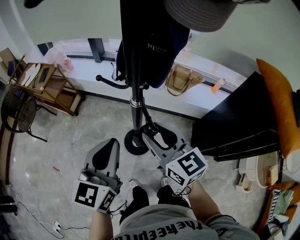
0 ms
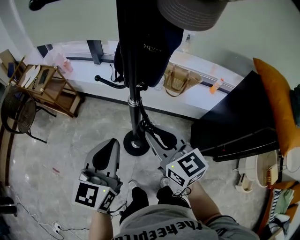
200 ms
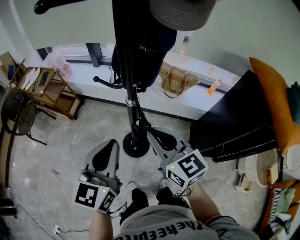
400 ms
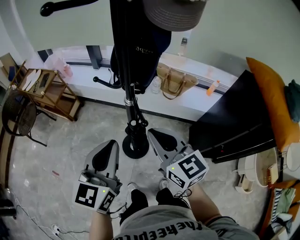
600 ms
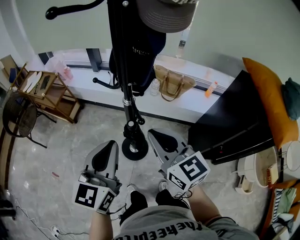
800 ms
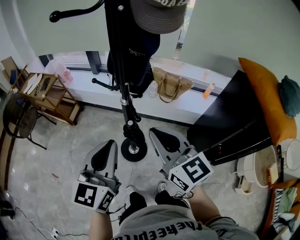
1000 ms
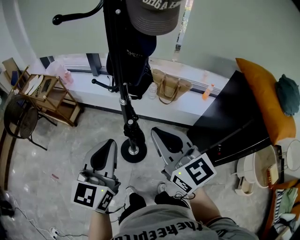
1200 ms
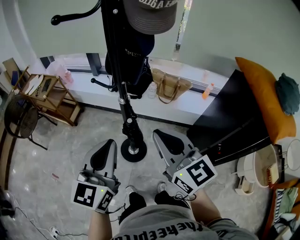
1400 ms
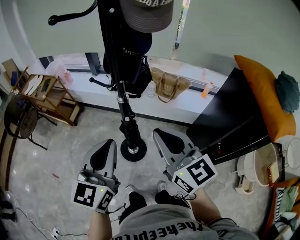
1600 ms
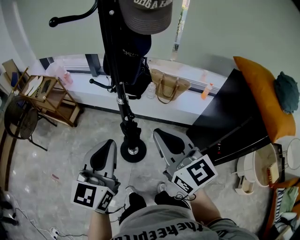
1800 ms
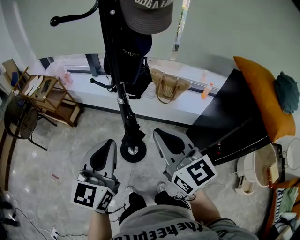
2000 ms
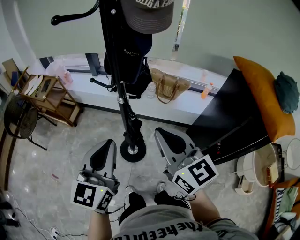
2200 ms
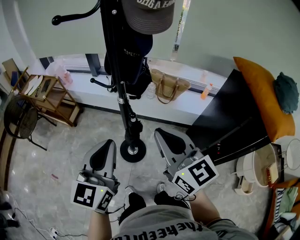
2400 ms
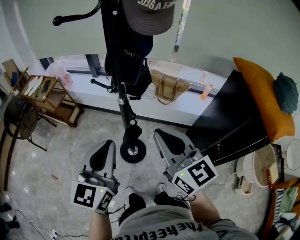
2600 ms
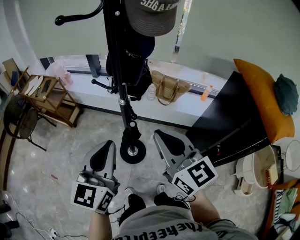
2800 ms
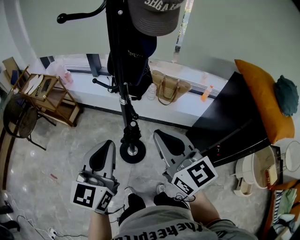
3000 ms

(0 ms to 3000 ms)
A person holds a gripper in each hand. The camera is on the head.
0 ms - 1600 ms: The right gripper moves backward, upward and to the right, approximately 15 cm, and closes its fingers; the left gripper heads backward, covering approximately 5 cm.
1600 ms - 3000 ms: Both grippers stay about where they are.

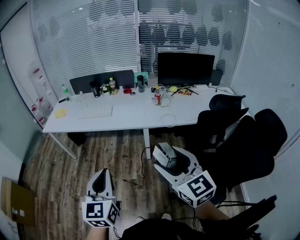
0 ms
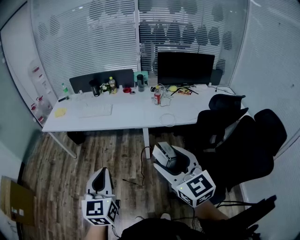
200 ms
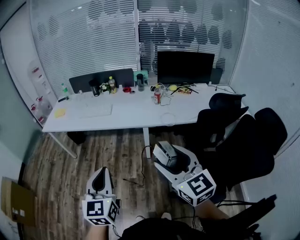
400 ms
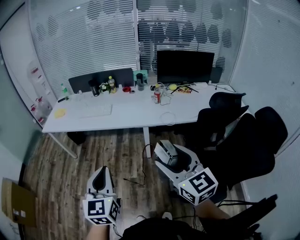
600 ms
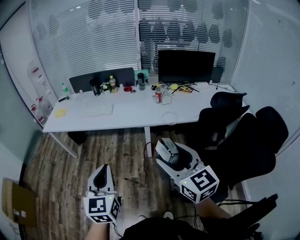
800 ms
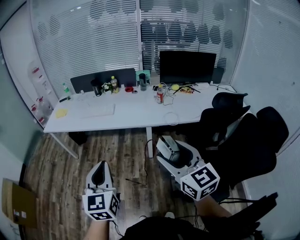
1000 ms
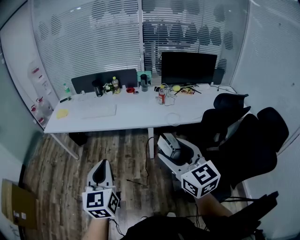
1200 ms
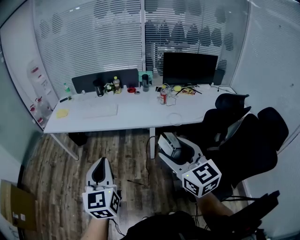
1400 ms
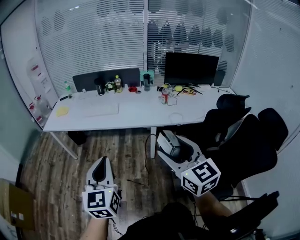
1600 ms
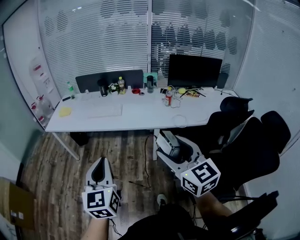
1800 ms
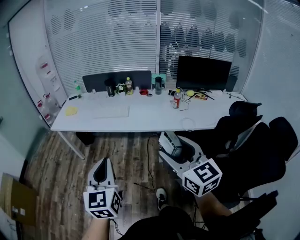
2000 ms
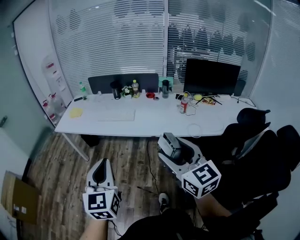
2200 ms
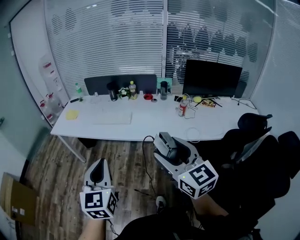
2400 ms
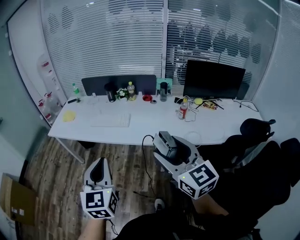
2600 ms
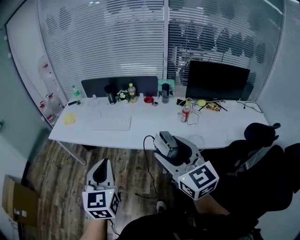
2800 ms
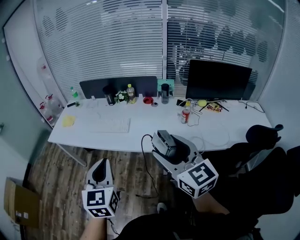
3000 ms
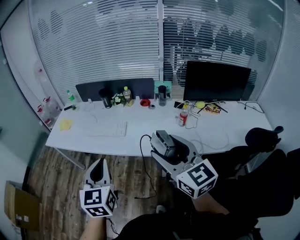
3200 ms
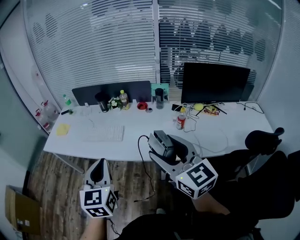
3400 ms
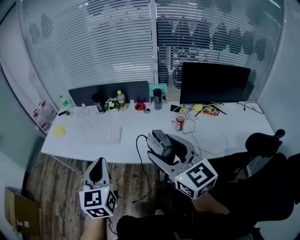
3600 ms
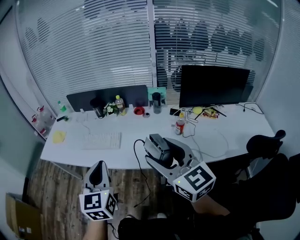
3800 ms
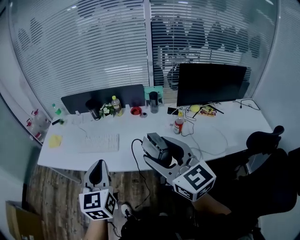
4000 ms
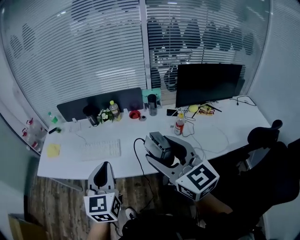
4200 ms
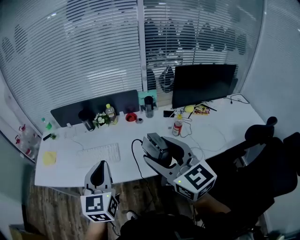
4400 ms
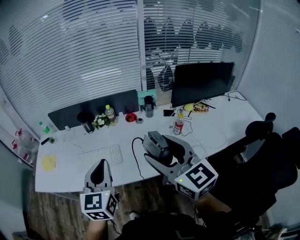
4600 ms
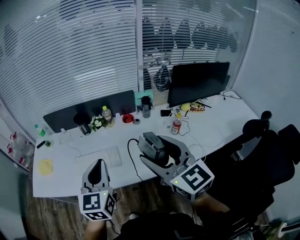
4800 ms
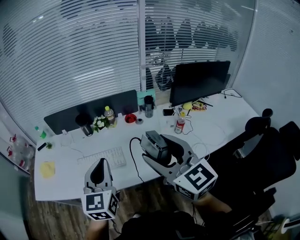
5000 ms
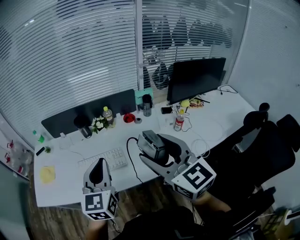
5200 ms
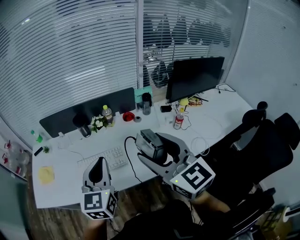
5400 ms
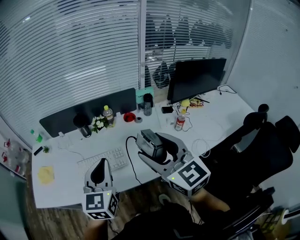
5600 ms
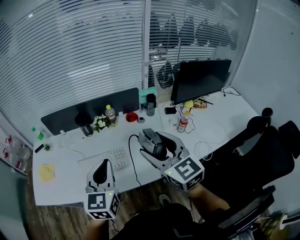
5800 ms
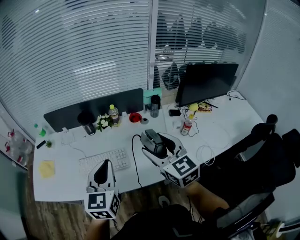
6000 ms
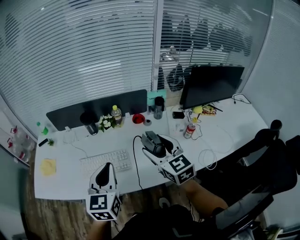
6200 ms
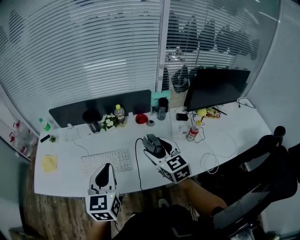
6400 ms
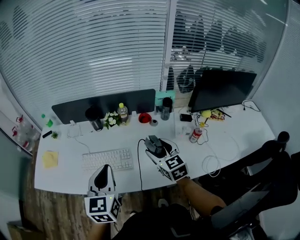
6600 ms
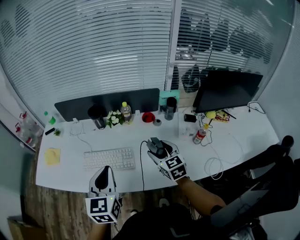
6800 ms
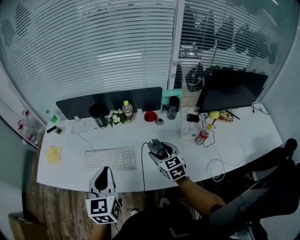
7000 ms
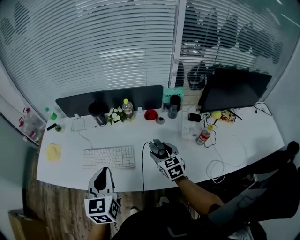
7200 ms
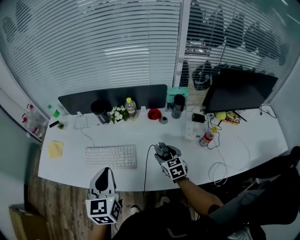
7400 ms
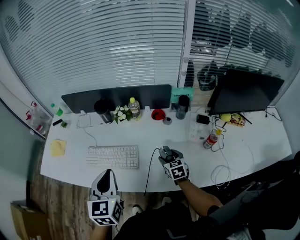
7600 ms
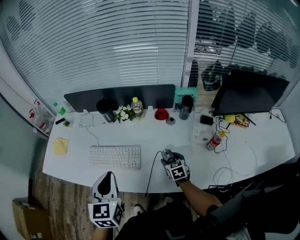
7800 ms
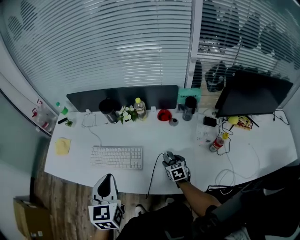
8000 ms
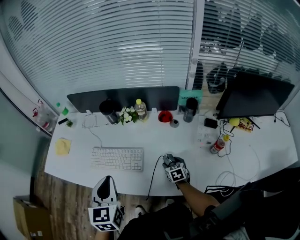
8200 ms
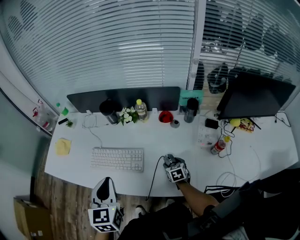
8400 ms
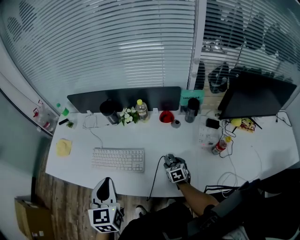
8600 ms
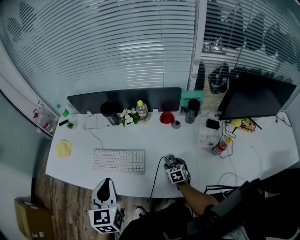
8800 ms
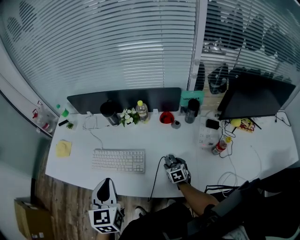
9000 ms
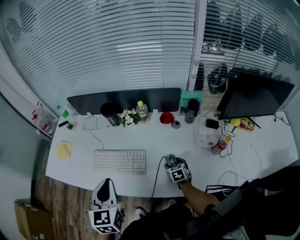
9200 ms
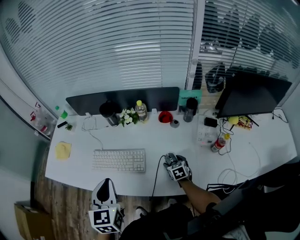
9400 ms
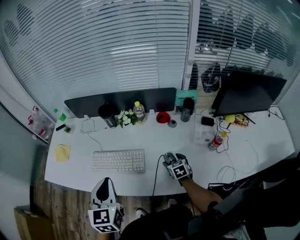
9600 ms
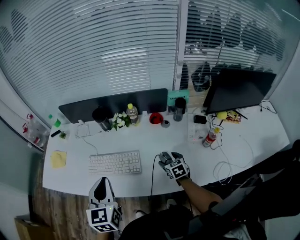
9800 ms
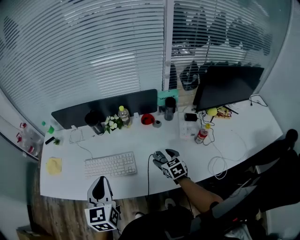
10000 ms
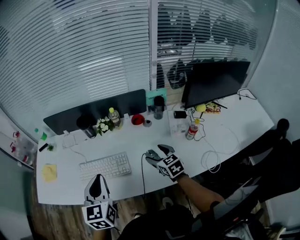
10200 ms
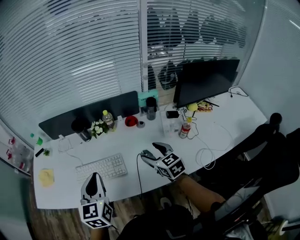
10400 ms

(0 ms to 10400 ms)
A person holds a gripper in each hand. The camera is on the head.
0 ms - 1400 ms: The left gripper moves to the left and forward, approximately 10 cm. Meanwhile the right gripper ends up approximately 5 cm from where it was.
1400 ms - 3000 ms: The two grippers go some 25 cm forward.
3000 ms - 4400 ms: Both grippers move forward, roughly 20 cm.
4400 ms - 6000 ms: The left gripper travels forward and to the left by some 15 cm. The right gripper is displaced forward, to the left and downward by roughly 20 cm.
6000 ms - 7400 ms: The left gripper moves downward, some 5 cm. The right gripper shifts approximately 25 cm downward, and turns by about 20 degrees.
7400 ms - 9000 ms: The right gripper heads downward, covering approximately 15 cm.
9000 ms - 10400 ms: The right gripper shifts roughly 25 cm upward, and turns by some 20 degrees.

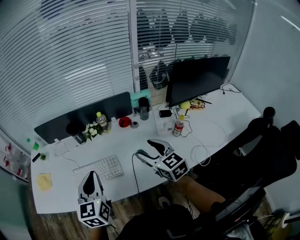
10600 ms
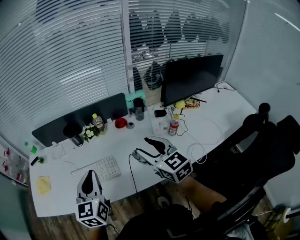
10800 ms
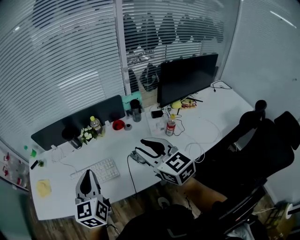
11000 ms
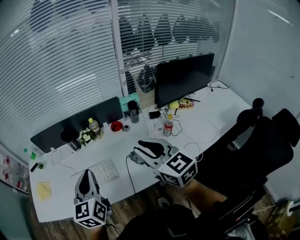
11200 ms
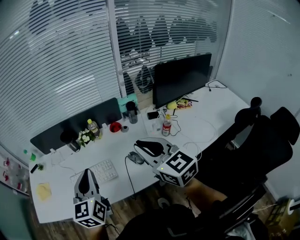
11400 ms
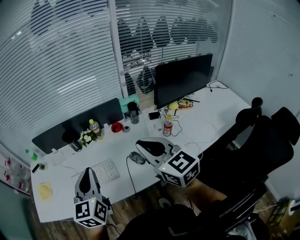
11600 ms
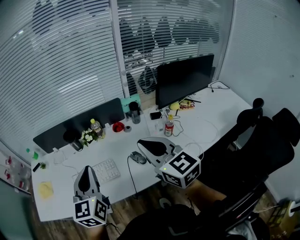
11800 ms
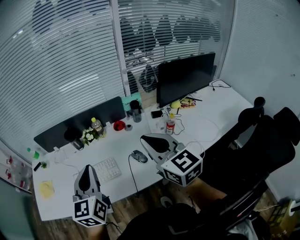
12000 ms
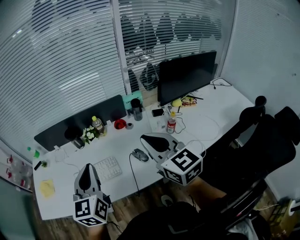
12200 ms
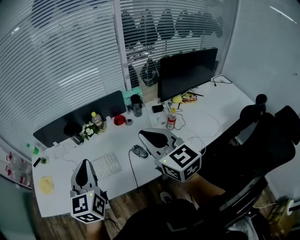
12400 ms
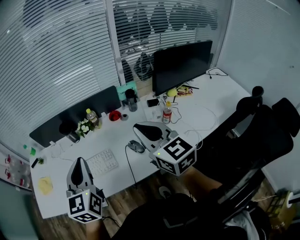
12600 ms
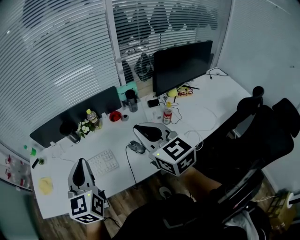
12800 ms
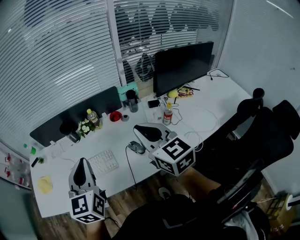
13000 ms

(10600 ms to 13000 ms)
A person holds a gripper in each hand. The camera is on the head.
10600 ms - 11800 ms: The left gripper travels upward by roughly 5 cm. Meanwhile the right gripper moves upward and backward, some 15 cm, and closes up.
11800 ms - 13000 ms: The grippers make only small movements.

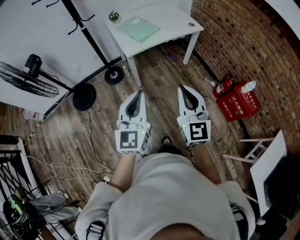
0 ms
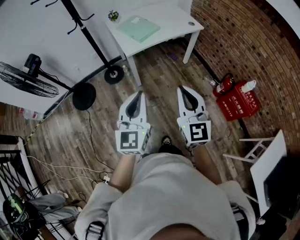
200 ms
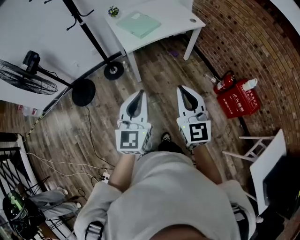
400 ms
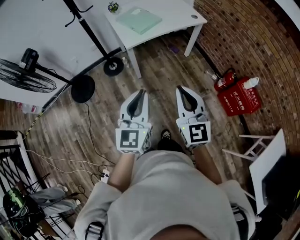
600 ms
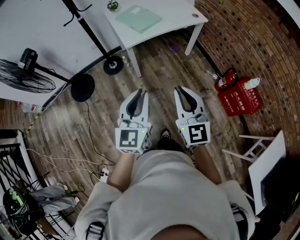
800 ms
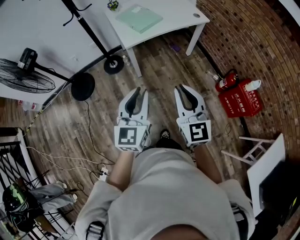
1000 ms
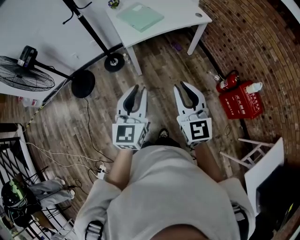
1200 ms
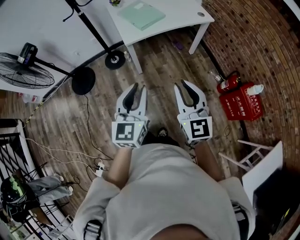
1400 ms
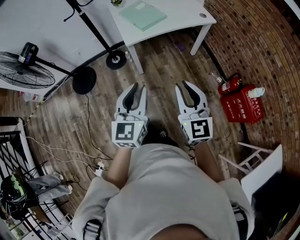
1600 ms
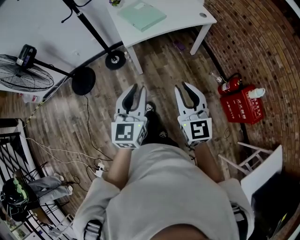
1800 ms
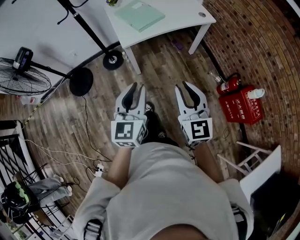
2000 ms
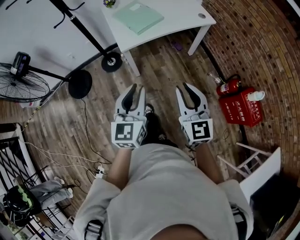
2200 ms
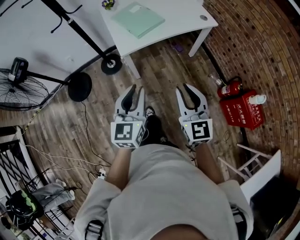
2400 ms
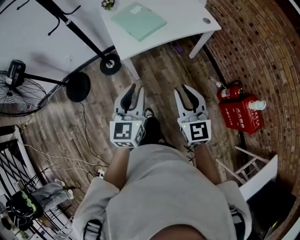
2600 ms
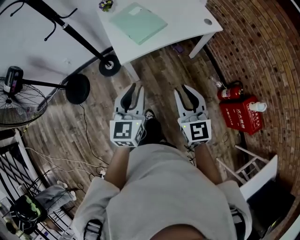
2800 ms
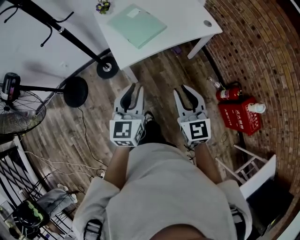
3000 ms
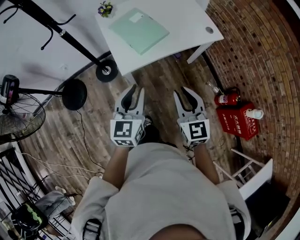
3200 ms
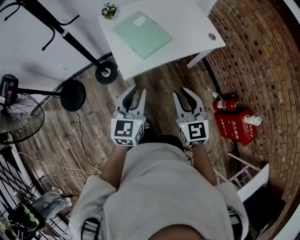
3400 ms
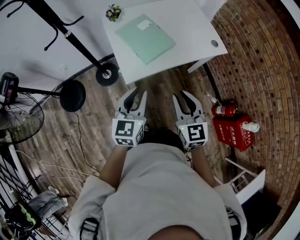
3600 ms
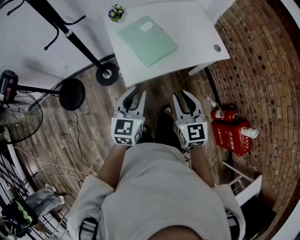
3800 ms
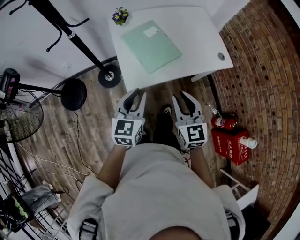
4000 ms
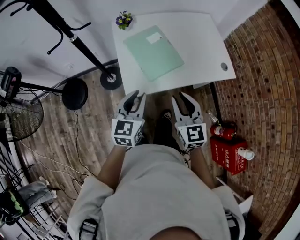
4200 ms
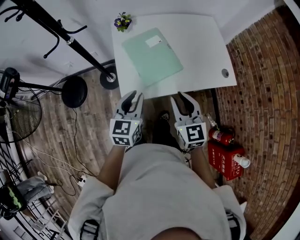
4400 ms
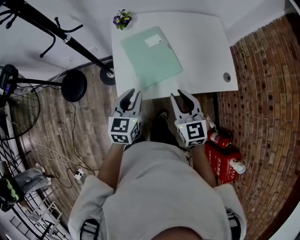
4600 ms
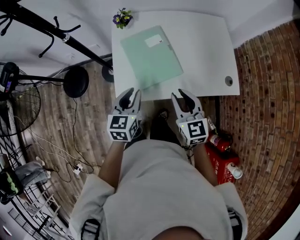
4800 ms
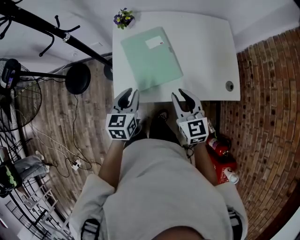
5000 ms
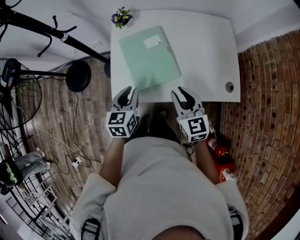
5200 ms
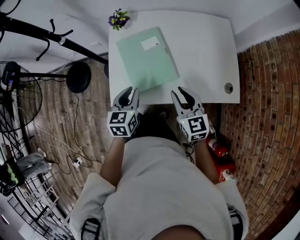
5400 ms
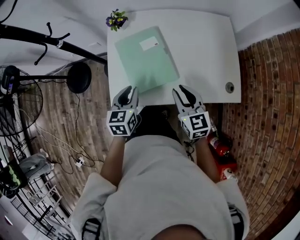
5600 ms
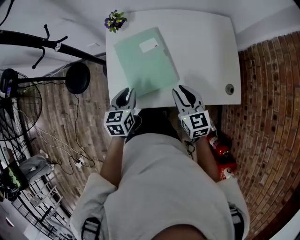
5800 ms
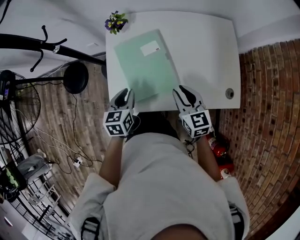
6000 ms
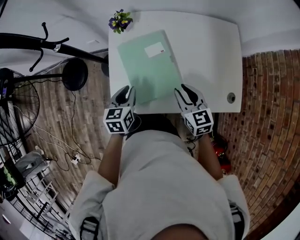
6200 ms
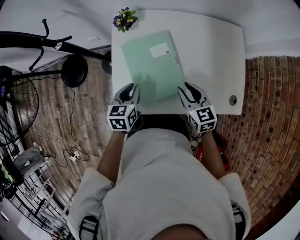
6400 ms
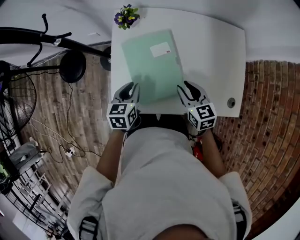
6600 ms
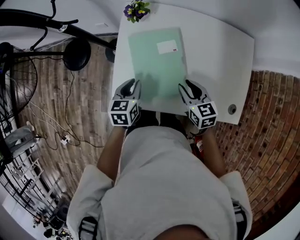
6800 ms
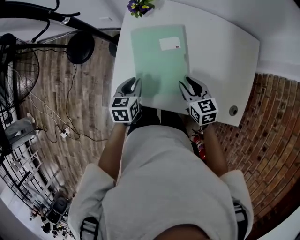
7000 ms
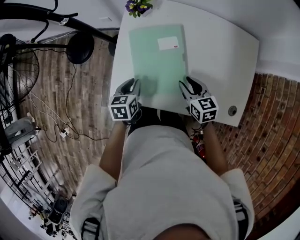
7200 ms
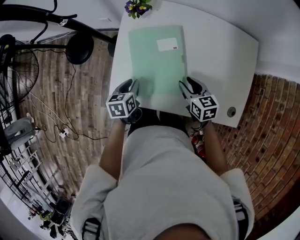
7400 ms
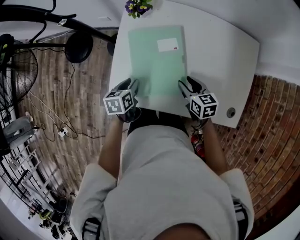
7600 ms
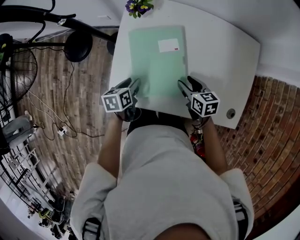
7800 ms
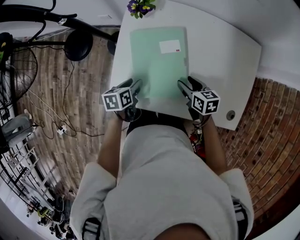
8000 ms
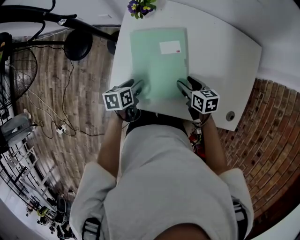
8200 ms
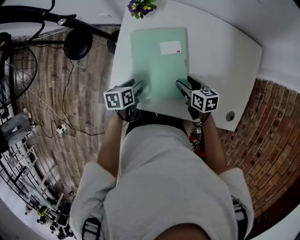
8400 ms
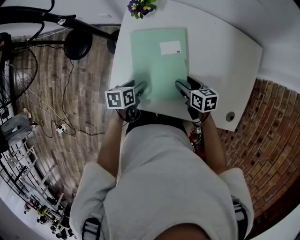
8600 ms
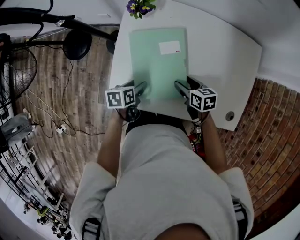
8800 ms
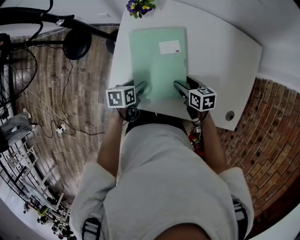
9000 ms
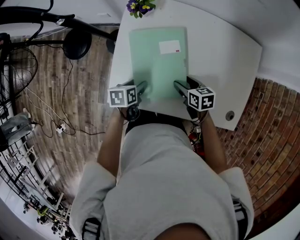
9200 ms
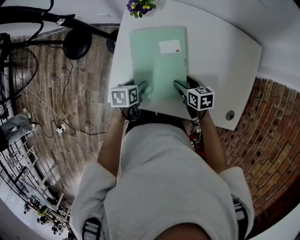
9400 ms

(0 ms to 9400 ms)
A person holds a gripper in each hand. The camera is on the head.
0 ms - 1600 ms: Both grippers move forward and downward, about 10 cm.
1600 ms - 3200 ms: The grippers both shift forward by roughly 30 cm.
3200 ms - 4800 ms: The two grippers go some 25 cm forward. The right gripper turns by roughly 20 degrees. Meanwhile the left gripper swivels roughly 20 degrees.
4800 ms - 6200 ms: The two grippers go roughly 15 cm forward and downward.
6200 ms - 7800 ms: The left gripper moves downward, roughly 10 cm, changes its angle by approximately 30 degrees, and opens up, while the right gripper shifts some 10 cm downward and forward, turns by some 30 degrees, and opens.
7800 ms - 9400 ms: The grippers stay close to where they were, moving slightly.
